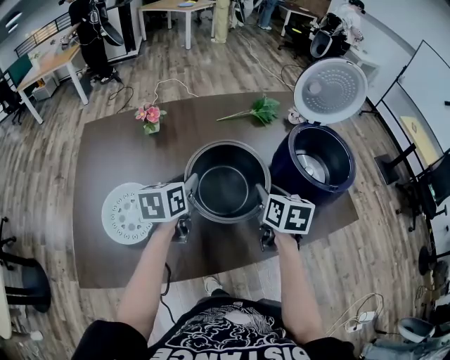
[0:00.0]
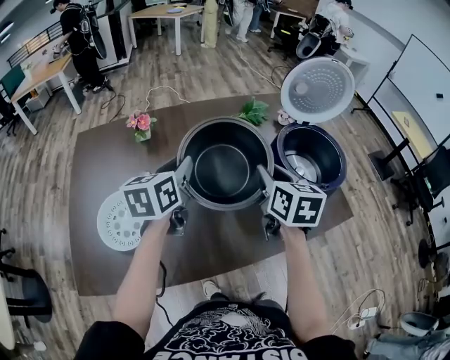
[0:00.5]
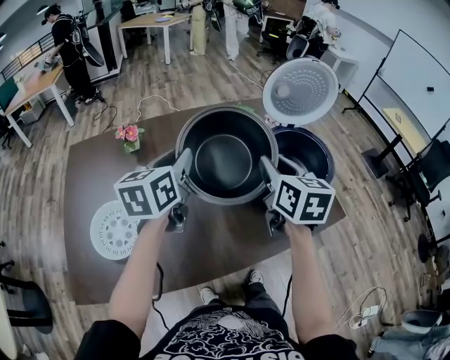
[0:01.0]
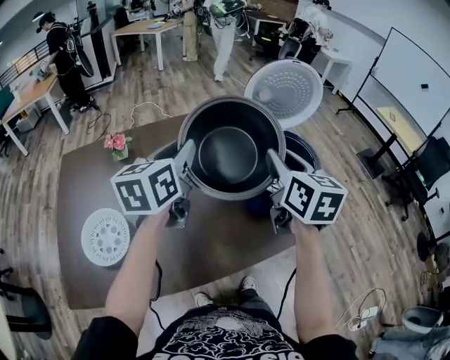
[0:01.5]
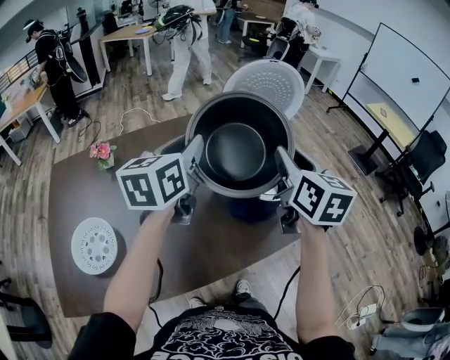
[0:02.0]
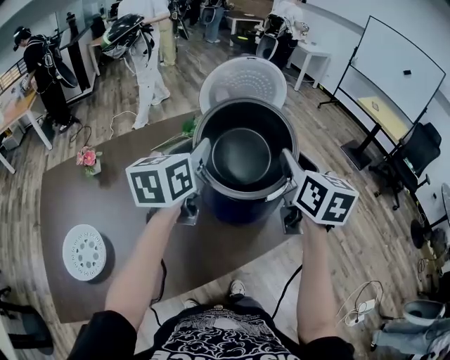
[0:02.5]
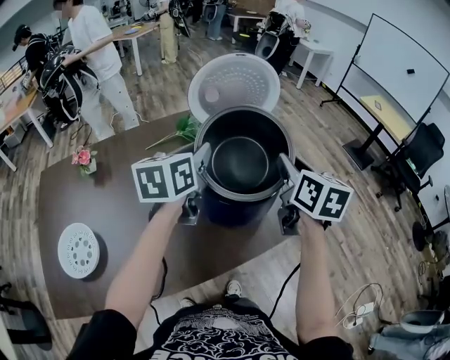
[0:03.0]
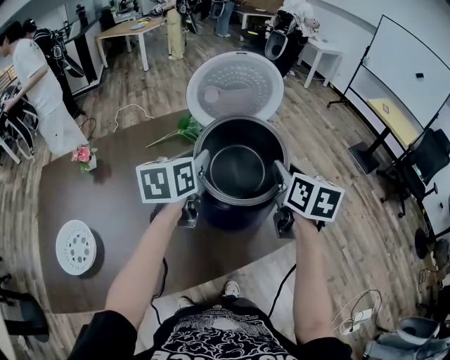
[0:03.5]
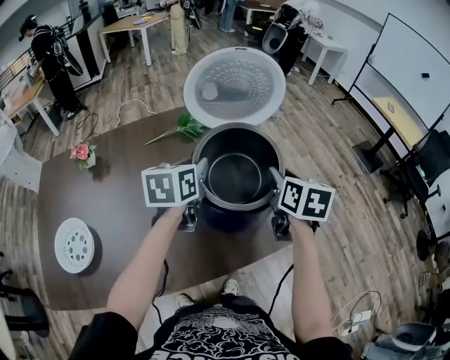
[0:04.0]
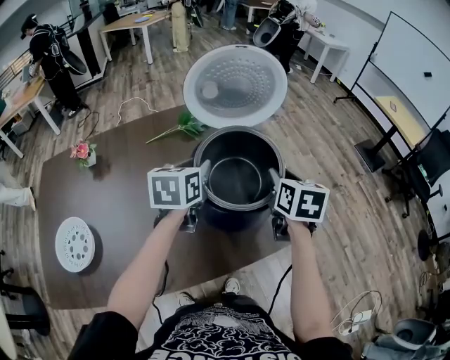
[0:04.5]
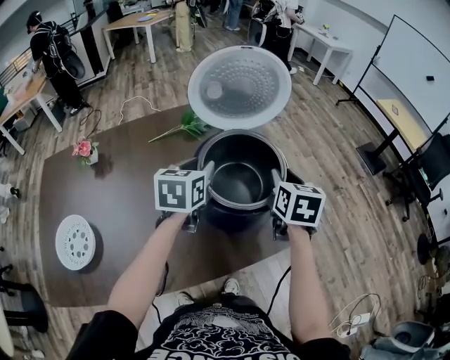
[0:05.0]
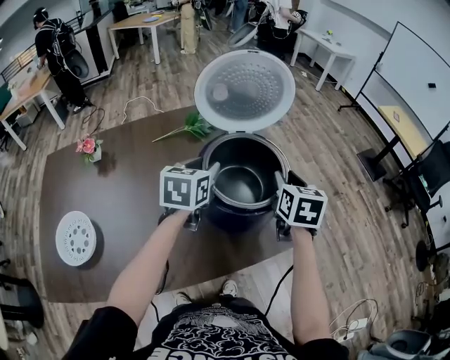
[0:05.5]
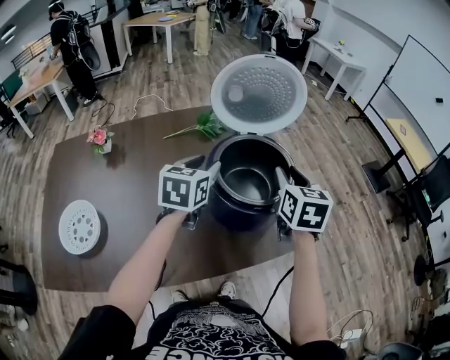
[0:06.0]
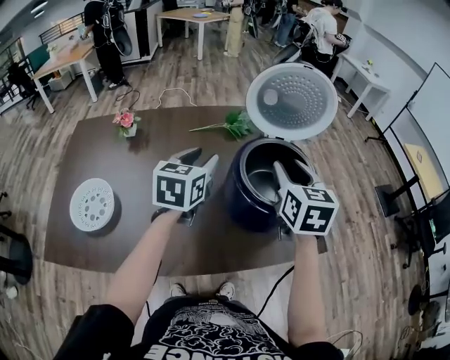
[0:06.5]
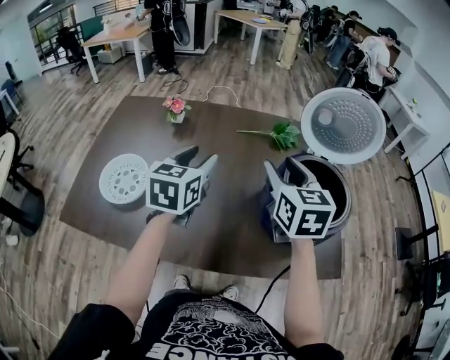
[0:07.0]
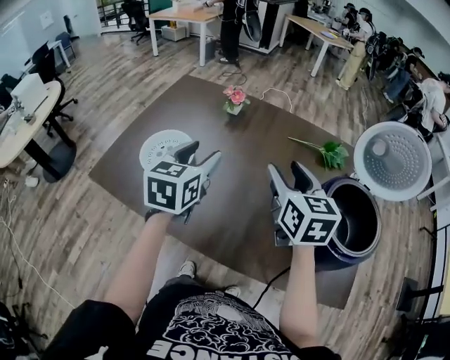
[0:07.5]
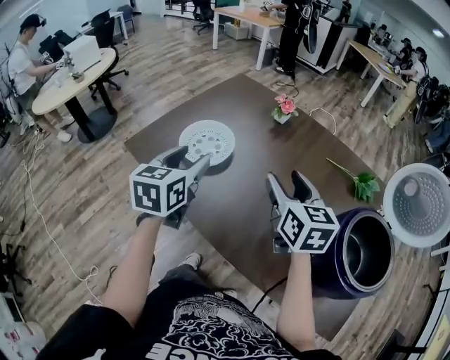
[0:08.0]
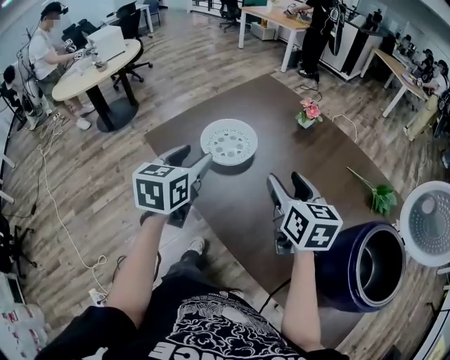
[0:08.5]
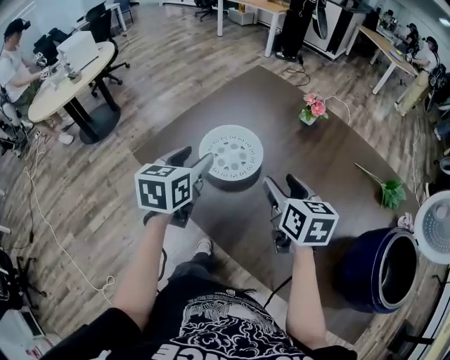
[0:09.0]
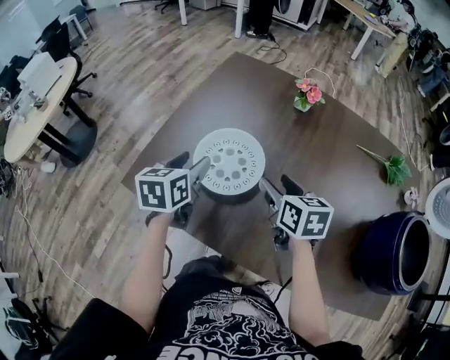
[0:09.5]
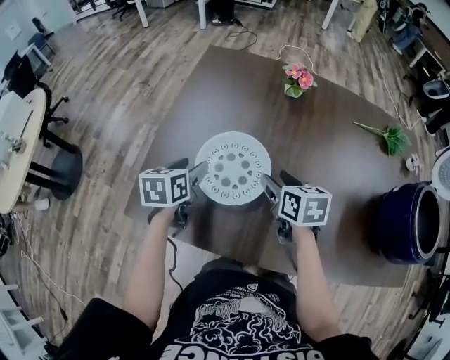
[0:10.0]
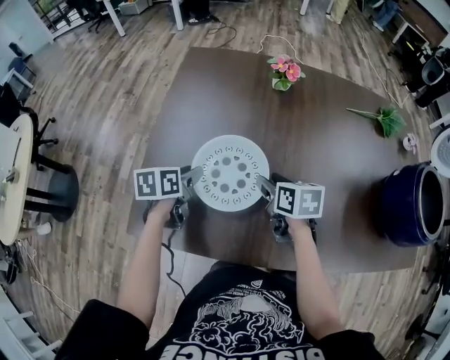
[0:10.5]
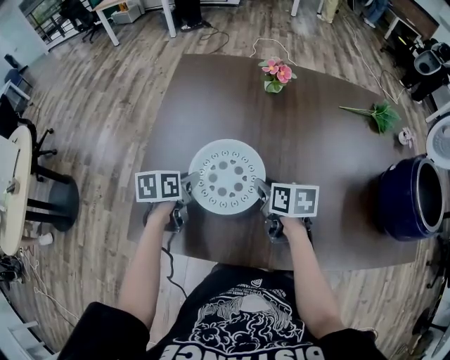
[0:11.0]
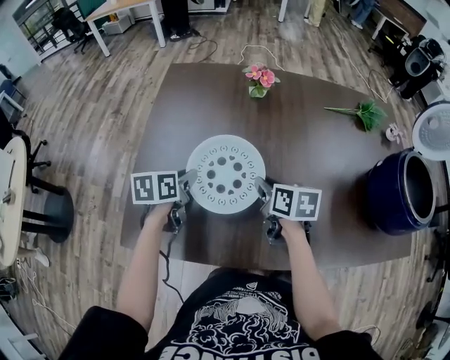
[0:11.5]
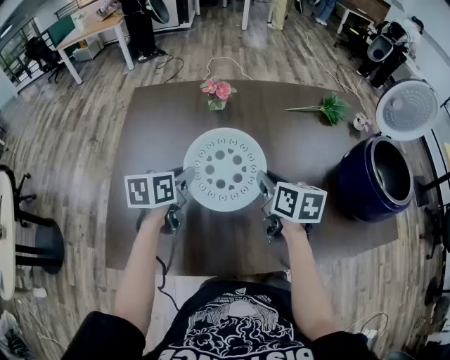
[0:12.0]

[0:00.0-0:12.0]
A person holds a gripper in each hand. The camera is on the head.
0:00.0 to 0:02.0: The right gripper heads upward and to the right, covering about 30 cm, and turns by roughly 30 degrees, while the left gripper shifts about 30 cm upward, to the right and forward, and rotates approximately 20 degrees.
0:02.0 to 0:04.0: The grippers both shift downward, to the right and forward by about 20 cm.
0:04.0 to 0:06.0: The grippers move only a little.
0:06.0 to 0:08.0: The two grippers travel together, roughly 40 cm. The right gripper turns by some 60 degrees, and opens, while the left gripper swivels about 60 degrees.
0:08.0 to 0:10.0: The right gripper is displaced downward by approximately 20 cm, and changes its angle by about 30 degrees. Meanwhile the left gripper changes place by some 30 cm, and rotates about 30 degrees.
0:10.0 to 0:12.0: The right gripper moves some 10 cm to the left and comes back, swivels about 30 degrees, and closes up, while the left gripper travels to the left and back again, about 10 cm each way, changes its angle by roughly 20 degrees, and closes its fingers.

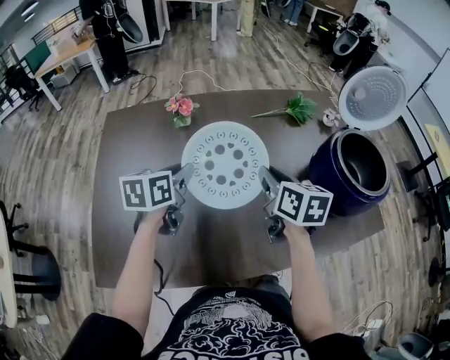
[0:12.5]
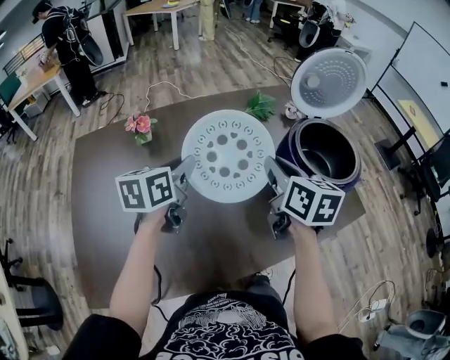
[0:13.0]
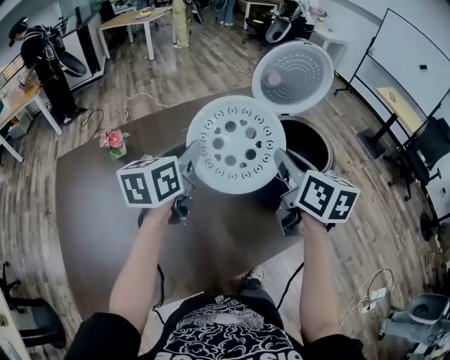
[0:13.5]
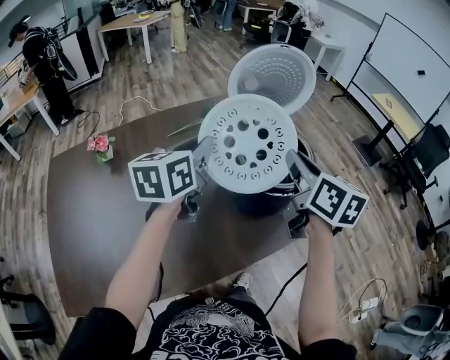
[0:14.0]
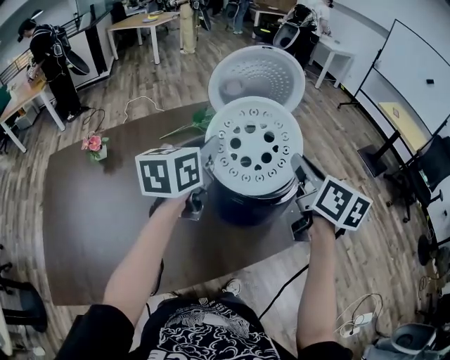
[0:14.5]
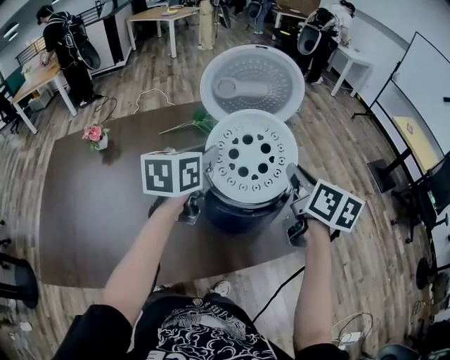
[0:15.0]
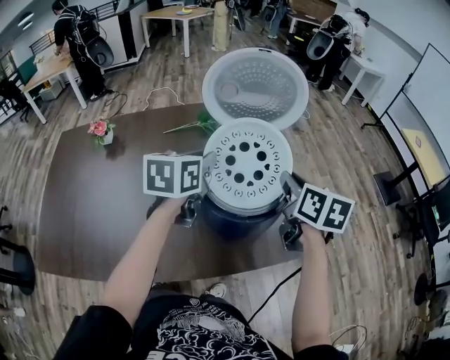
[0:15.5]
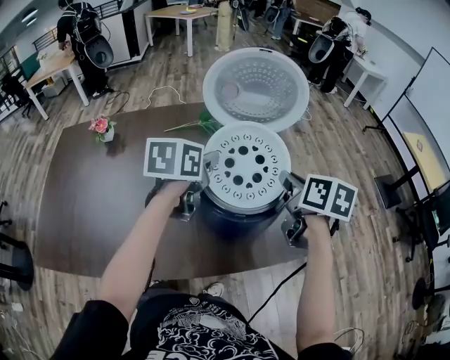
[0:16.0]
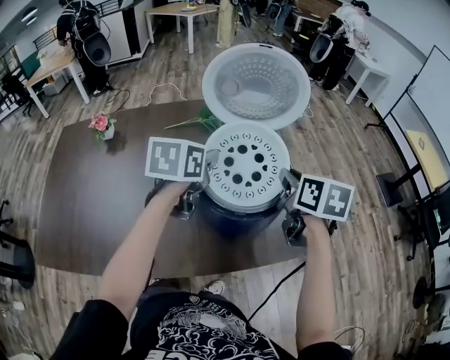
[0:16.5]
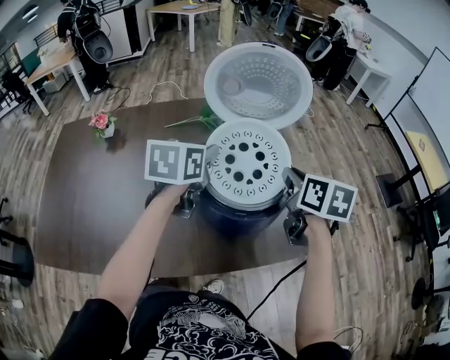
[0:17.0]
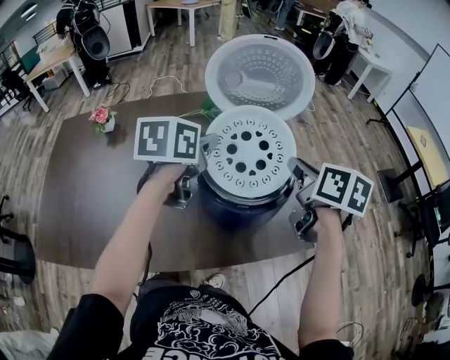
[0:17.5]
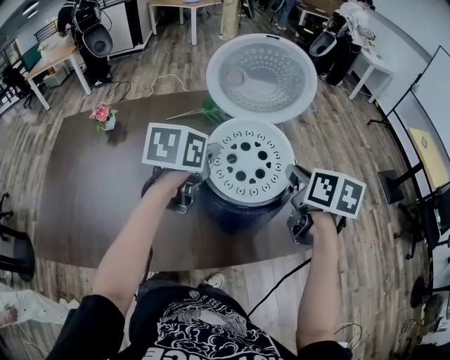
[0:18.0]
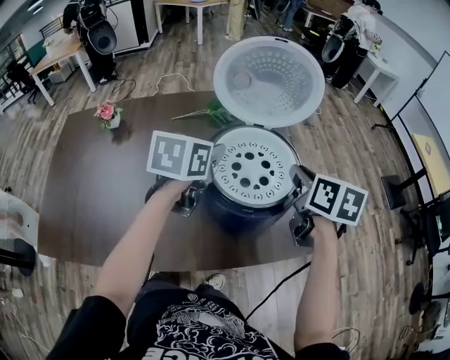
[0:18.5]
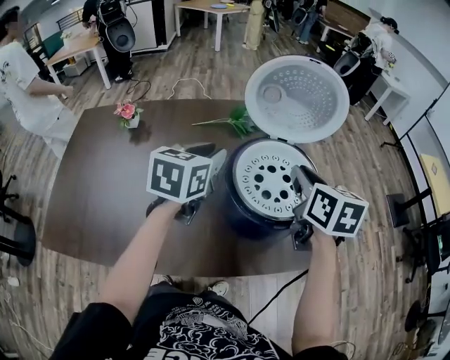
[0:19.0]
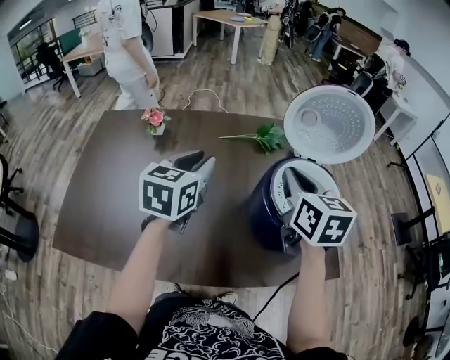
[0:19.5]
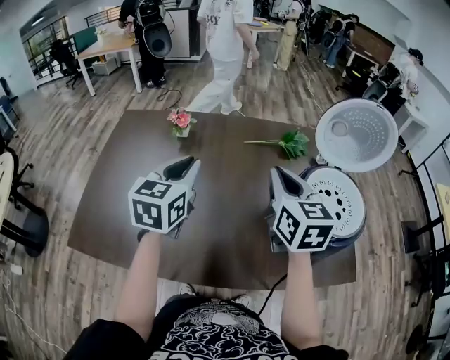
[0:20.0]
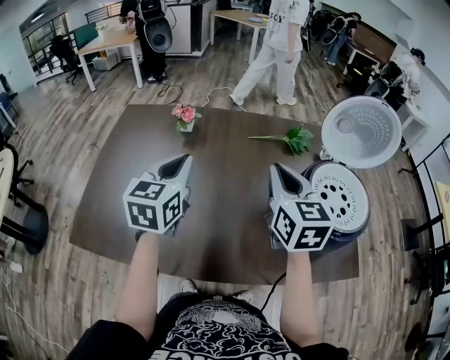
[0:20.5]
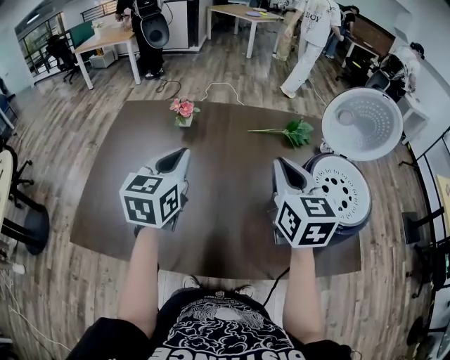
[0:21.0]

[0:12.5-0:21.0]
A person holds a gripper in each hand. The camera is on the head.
0:12.5 to 0:14.5: Both grippers move to the right, approximately 40 cm. The left gripper changes its angle by roughly 20 degrees, while the right gripper changes its angle by approximately 20 degrees.
0:14.5 to 0:16.5: The left gripper changes its angle by approximately 20 degrees. Meanwhile the right gripper moves downward and forward, roughly 10 cm, and swivels some 30 degrees.
0:16.5 to 0:19.0: The two grippers go about 5 cm to the left.
0:19.0 to 0:21.0: The grippers both shift to the left by approximately 25 cm. The right gripper swivels about 20 degrees; the left gripper changes its angle by roughly 20 degrees.

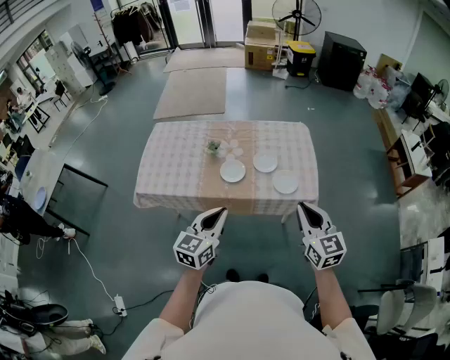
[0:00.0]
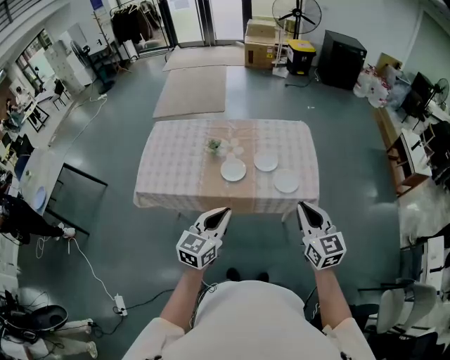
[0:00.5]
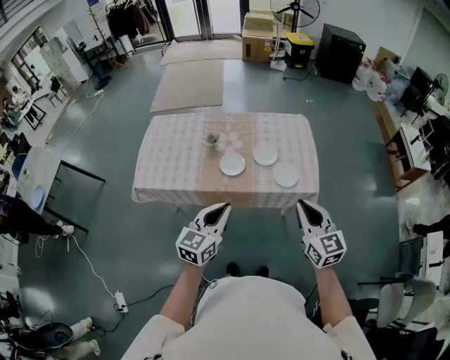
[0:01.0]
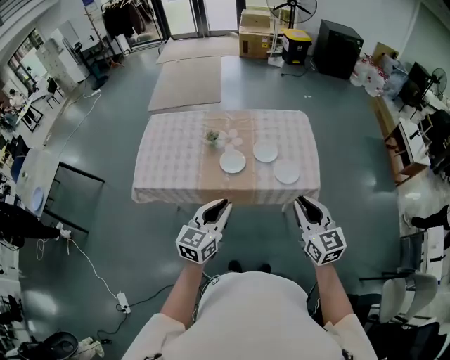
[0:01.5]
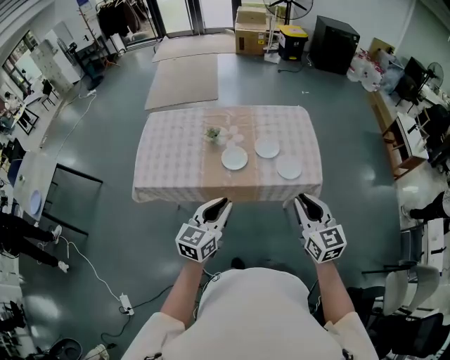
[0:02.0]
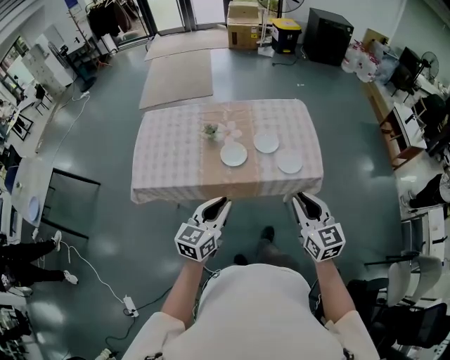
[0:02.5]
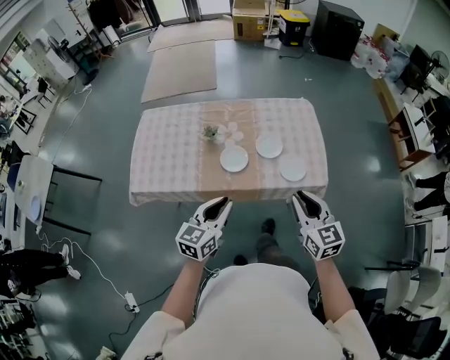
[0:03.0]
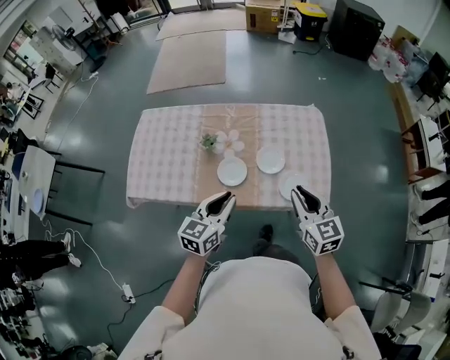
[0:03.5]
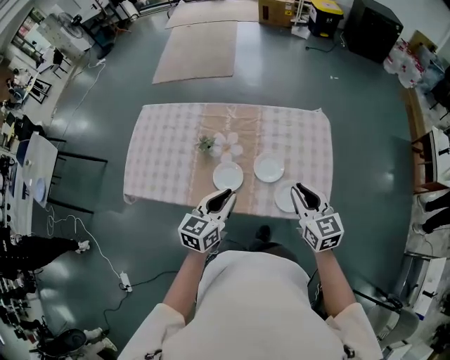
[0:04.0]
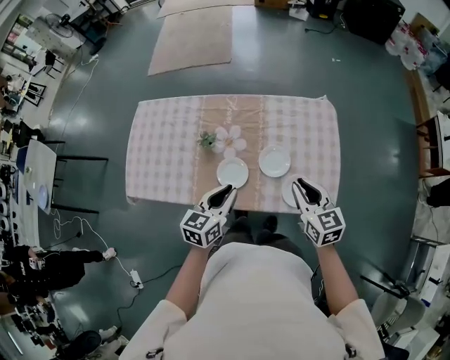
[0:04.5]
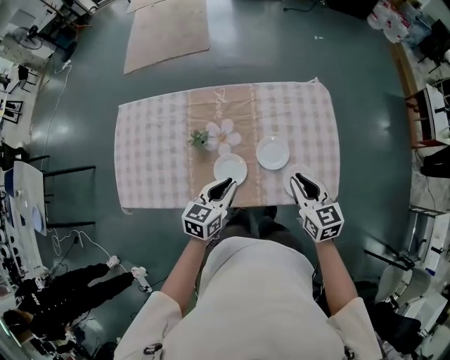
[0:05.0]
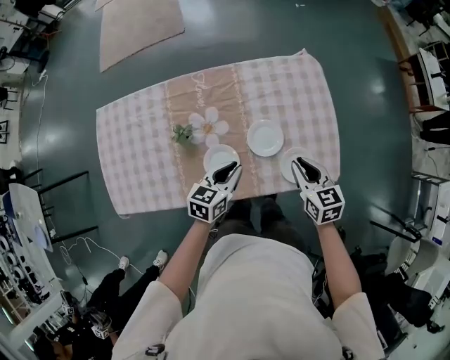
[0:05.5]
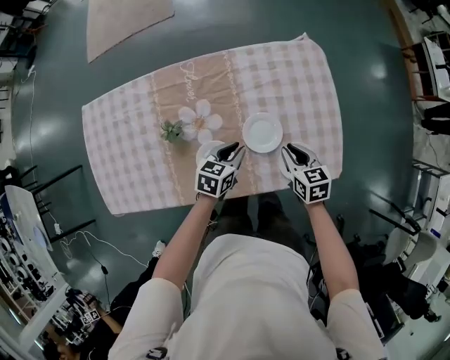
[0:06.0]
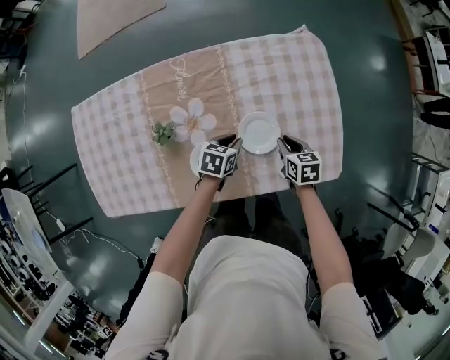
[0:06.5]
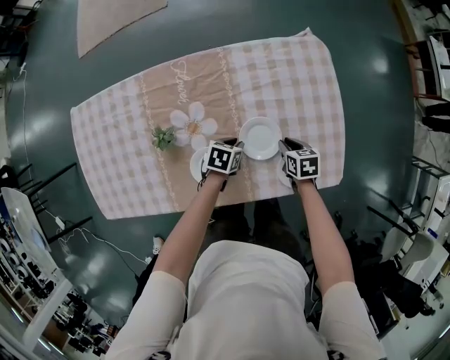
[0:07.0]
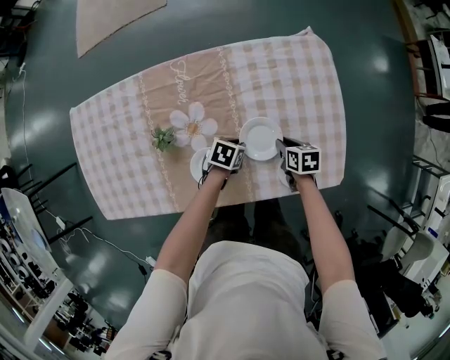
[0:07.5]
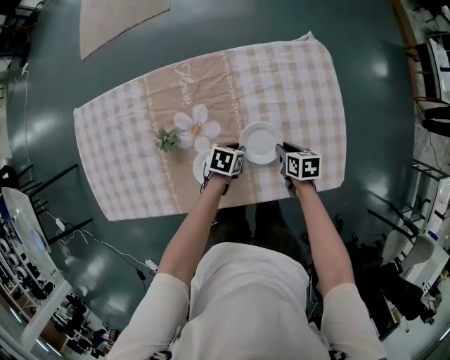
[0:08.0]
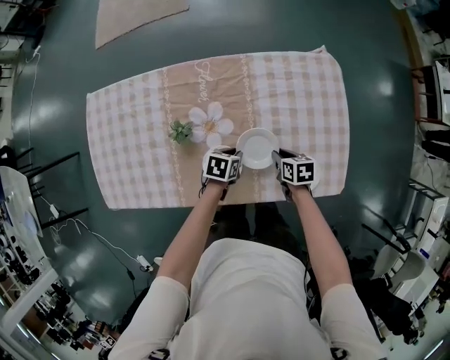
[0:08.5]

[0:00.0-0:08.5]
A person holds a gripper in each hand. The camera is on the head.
0:00.0 to 0:02.0: The right gripper is displaced to the left by some 5 cm.
0:02.0 to 0:04.0: The two grippers go roughly 30 cm forward.
0:04.0 to 0:06.5: The right gripper moves downward, approximately 35 cm, and points its fingers approximately 30 degrees further downward, while the left gripper moves downward and forward, some 40 cm, and tilts its fingers approximately 30 degrees downward.
0:06.5 to 0:08.5: The right gripper moves approximately 5 cm; the left gripper ends up some 5 cm from where it was.
